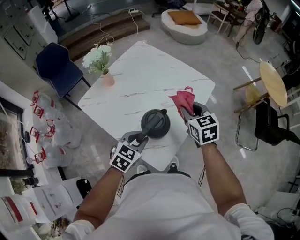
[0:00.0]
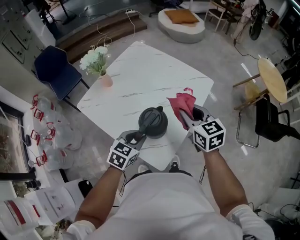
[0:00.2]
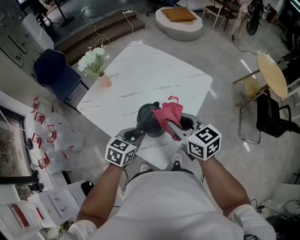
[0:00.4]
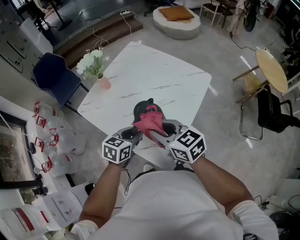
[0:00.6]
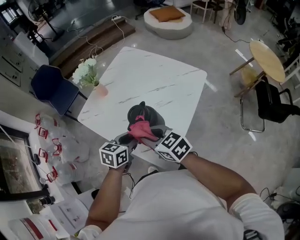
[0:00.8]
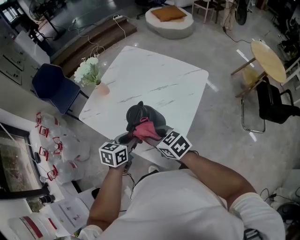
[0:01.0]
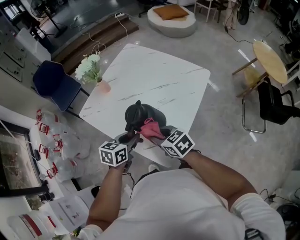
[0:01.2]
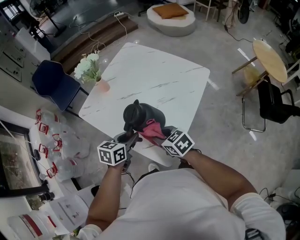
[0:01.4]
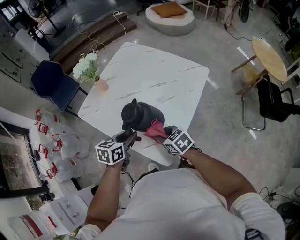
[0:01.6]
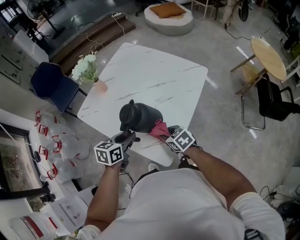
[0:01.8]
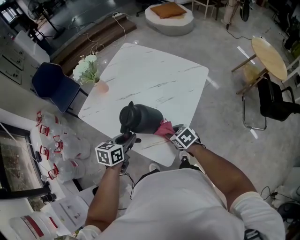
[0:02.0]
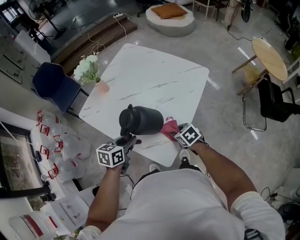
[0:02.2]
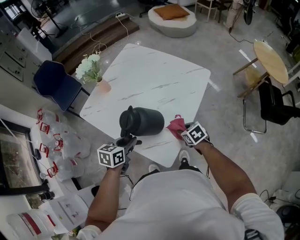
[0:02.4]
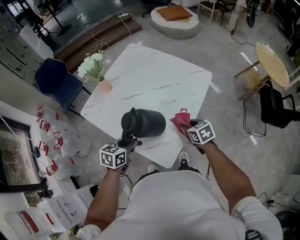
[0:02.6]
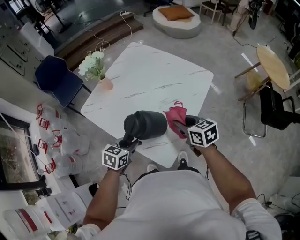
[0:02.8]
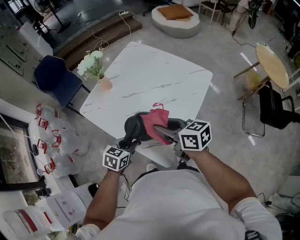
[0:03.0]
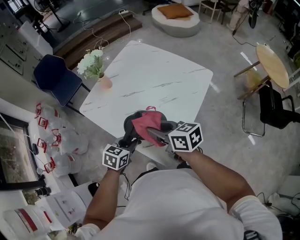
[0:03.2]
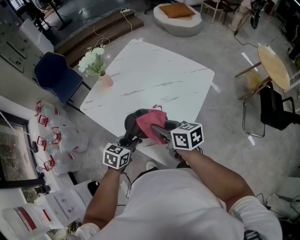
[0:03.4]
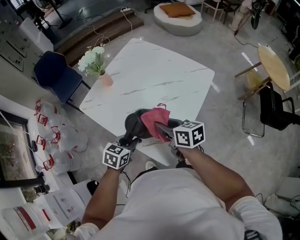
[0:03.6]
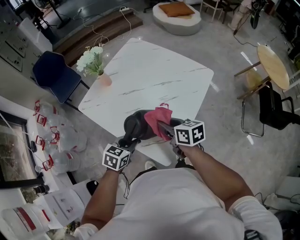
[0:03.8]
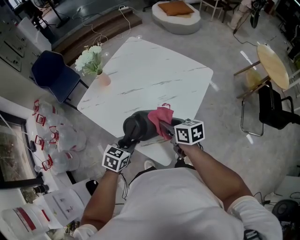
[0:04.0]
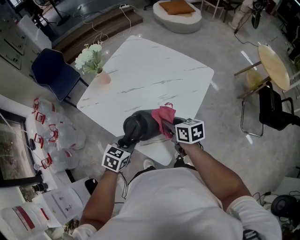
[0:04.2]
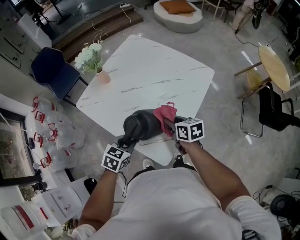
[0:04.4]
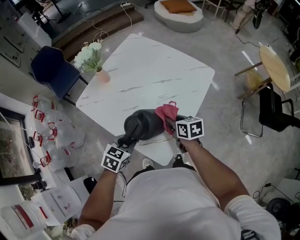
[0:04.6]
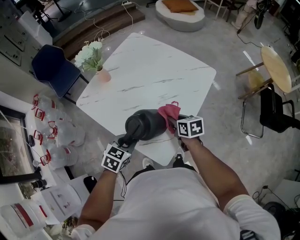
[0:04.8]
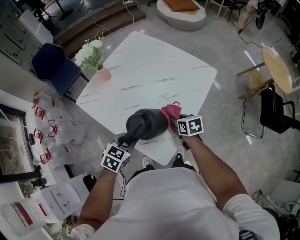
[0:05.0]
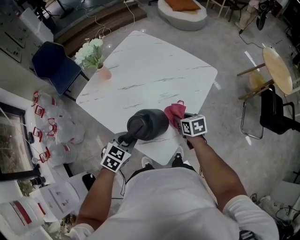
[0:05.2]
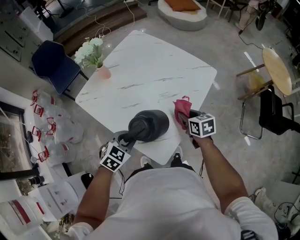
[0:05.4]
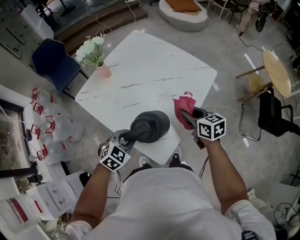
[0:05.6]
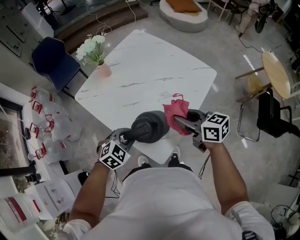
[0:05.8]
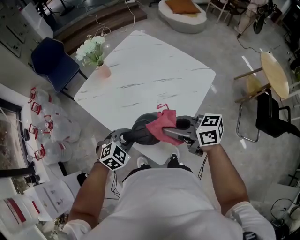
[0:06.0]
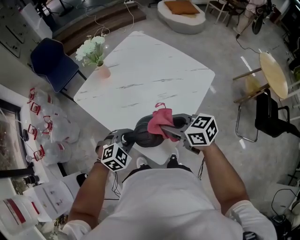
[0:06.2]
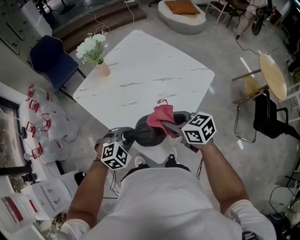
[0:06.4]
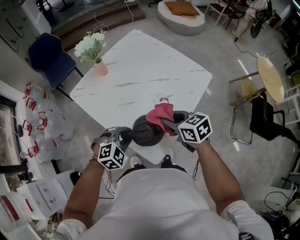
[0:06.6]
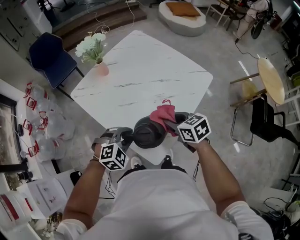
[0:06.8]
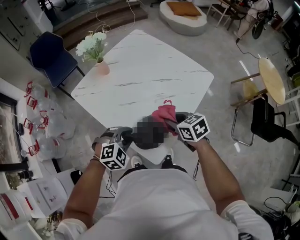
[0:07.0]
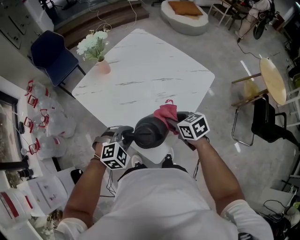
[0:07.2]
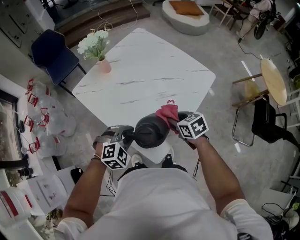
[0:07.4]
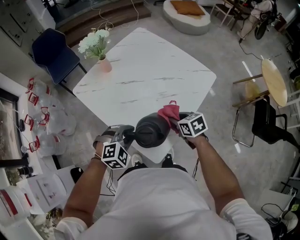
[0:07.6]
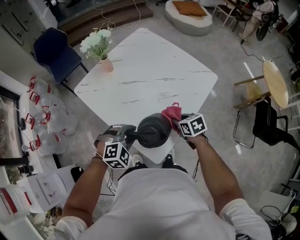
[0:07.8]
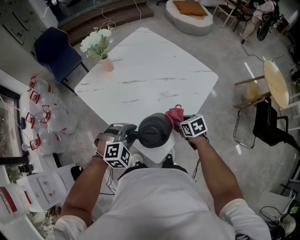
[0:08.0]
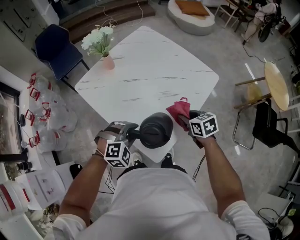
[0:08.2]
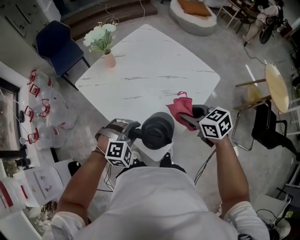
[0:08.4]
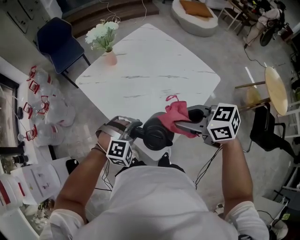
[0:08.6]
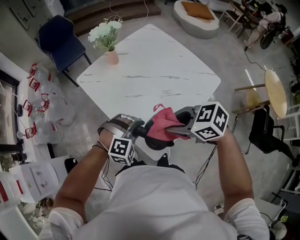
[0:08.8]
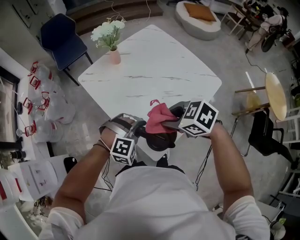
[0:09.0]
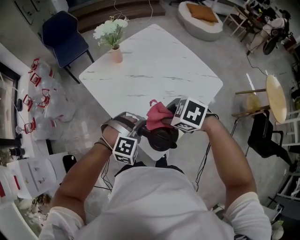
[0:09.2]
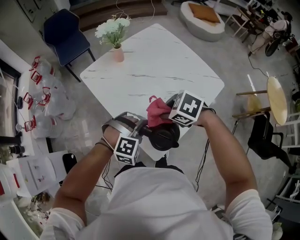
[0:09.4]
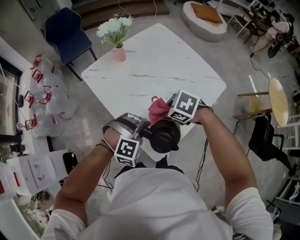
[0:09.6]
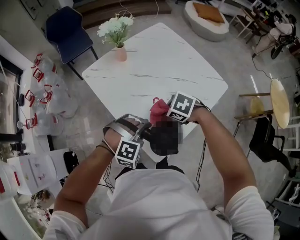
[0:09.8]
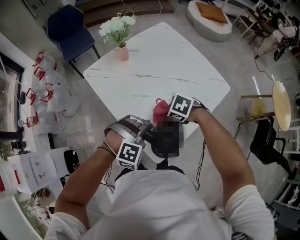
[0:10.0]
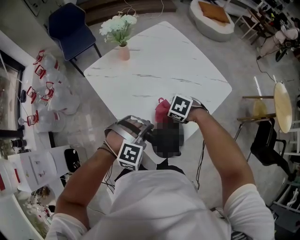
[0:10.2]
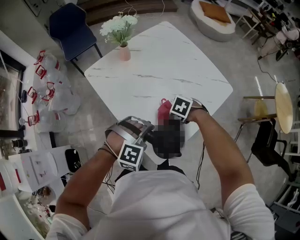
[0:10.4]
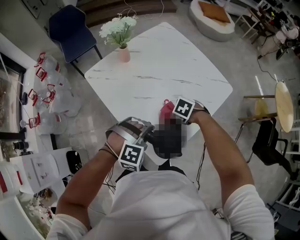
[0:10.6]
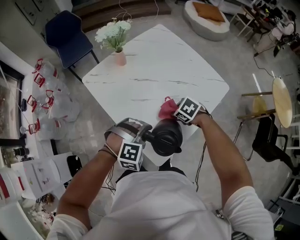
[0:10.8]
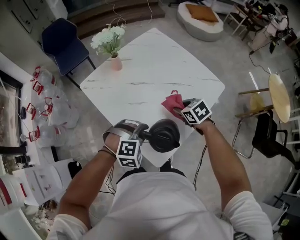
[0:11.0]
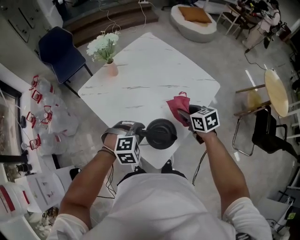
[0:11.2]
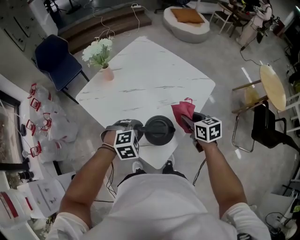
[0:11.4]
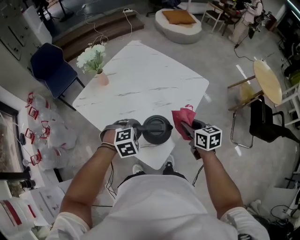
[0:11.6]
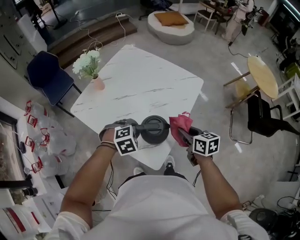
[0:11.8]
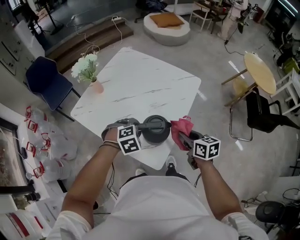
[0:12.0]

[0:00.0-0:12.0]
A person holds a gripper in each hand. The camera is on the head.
0:00.0 to 0:01.6: The right gripper is displaced downward, backward and to the left by approximately 20 cm, and changes its angle by about 30 degrees. Meanwhile the left gripper travels to the left by roughly 5 cm, and swivels about 30 degrees.
0:01.6 to 0:03.0: The left gripper ends up roughly 5 cm from where it was. The right gripper goes roughly 15 cm upward, and changes its angle by roughly 30 degrees.
0:03.0 to 0:04.4: The right gripper shifts about 15 cm downward and to the right, and changes its angle by about 20 degrees.
0:04.4 to 0:06.0: The right gripper heads upward and backward, covering roughly 15 cm, and turns by approximately 40 degrees, while the left gripper swivels some 30 degrees.
0:06.0 to 0:07.6: The right gripper moves downward and to the right, some 15 cm, and tilts its fingers some 40 degrees downward.
0:07.6 to 0:09.0: The right gripper moves up and down over some 25 cm, changing direction 2 times, and changes its angle by about 40 degrees. The left gripper turns by roughly 20 degrees.
0:09.0 to 0:10.4: The right gripper travels downward by roughly 20 cm, and turns by roughly 30 degrees.
0:10.4 to 0:12.0: The right gripper ends up approximately 20 cm from where it was, and tilts its fingers about 50 degrees upward, while the left gripper rotates approximately 20 degrees.

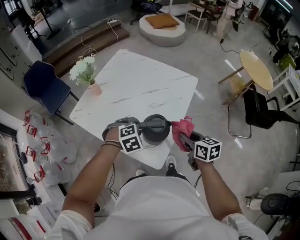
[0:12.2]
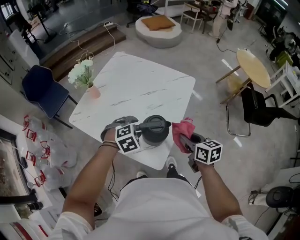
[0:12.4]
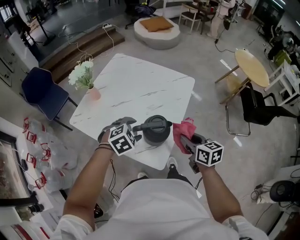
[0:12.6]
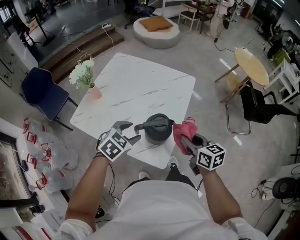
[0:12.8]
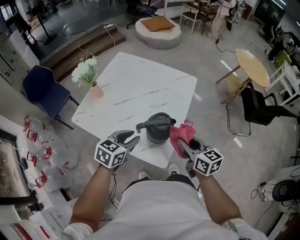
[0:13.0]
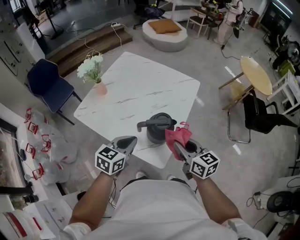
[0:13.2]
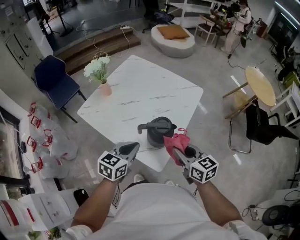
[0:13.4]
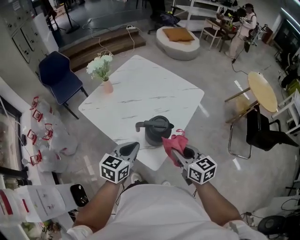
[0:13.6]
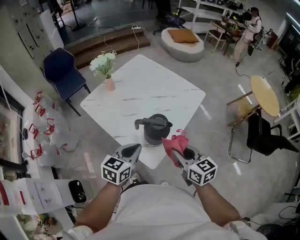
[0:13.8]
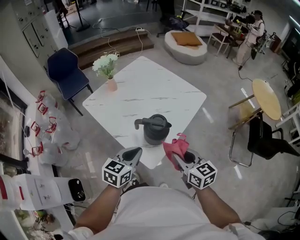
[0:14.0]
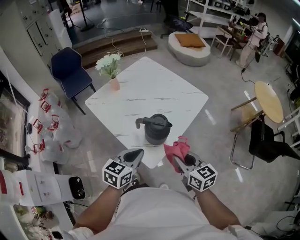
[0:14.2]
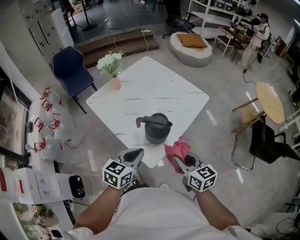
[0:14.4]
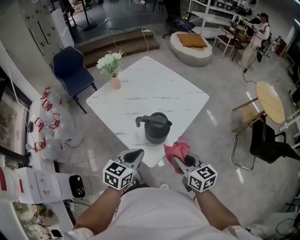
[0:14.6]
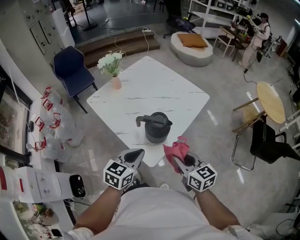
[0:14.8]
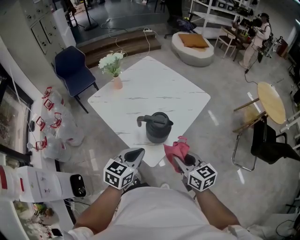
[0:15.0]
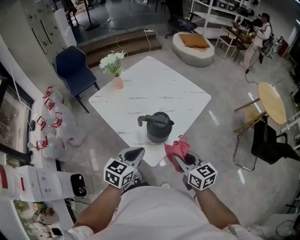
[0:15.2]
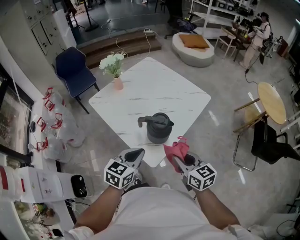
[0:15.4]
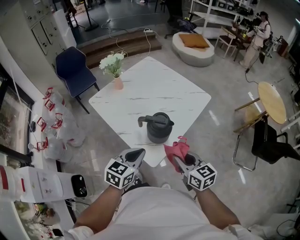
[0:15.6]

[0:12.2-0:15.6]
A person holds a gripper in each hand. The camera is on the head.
0:12.2 to 0:13.8: The right gripper goes roughly 10 cm backward and upward, and turns by about 20 degrees. Meanwhile the left gripper travels backward and upward by roughly 15 cm, angles its fingers upward, by roughly 40 degrees, and closes up.
0:13.8 to 0:15.6: There are only small adjustments of the grippers.

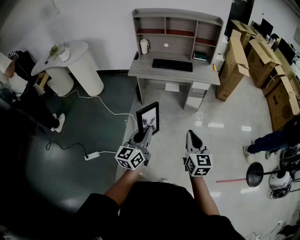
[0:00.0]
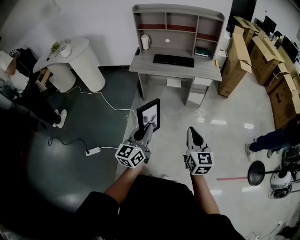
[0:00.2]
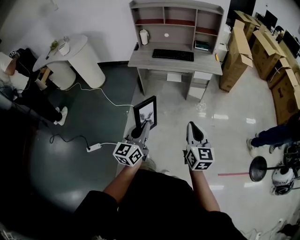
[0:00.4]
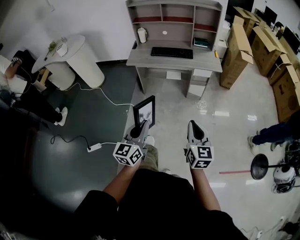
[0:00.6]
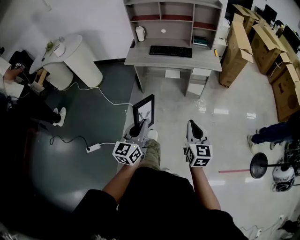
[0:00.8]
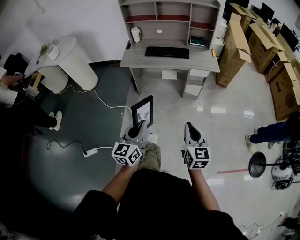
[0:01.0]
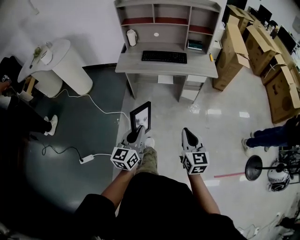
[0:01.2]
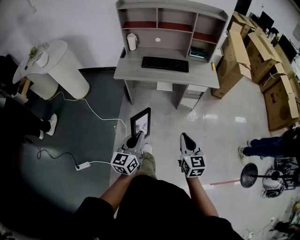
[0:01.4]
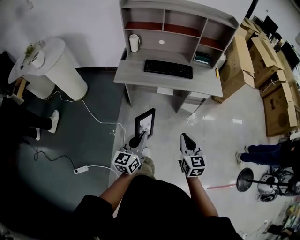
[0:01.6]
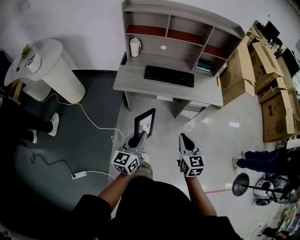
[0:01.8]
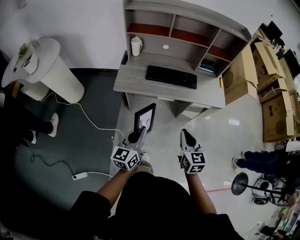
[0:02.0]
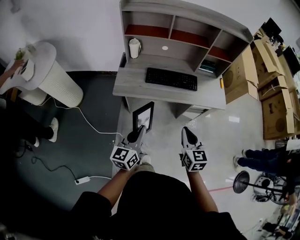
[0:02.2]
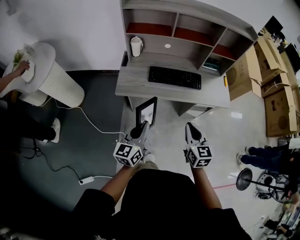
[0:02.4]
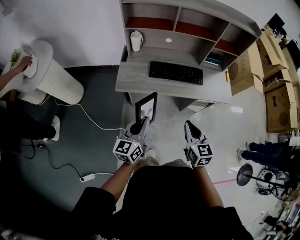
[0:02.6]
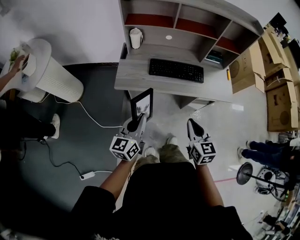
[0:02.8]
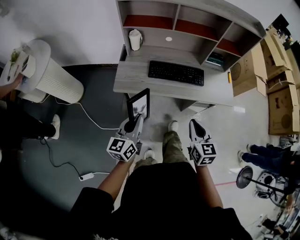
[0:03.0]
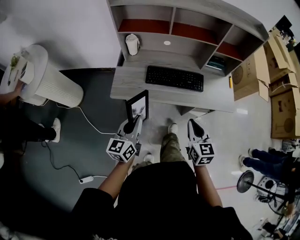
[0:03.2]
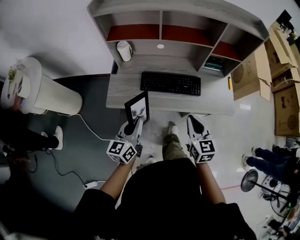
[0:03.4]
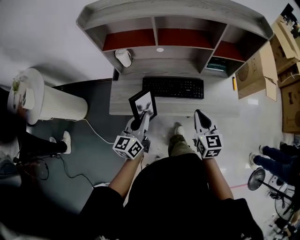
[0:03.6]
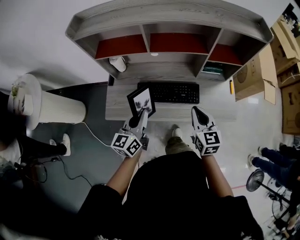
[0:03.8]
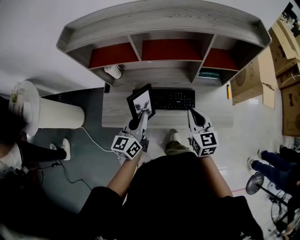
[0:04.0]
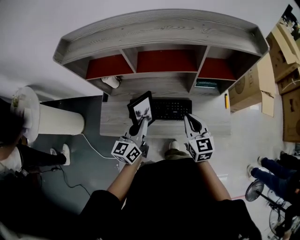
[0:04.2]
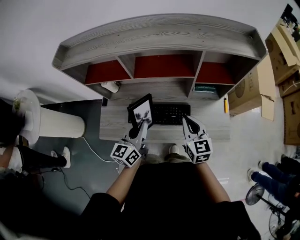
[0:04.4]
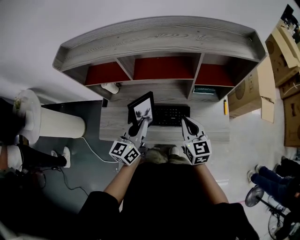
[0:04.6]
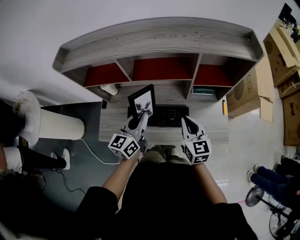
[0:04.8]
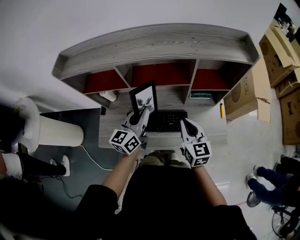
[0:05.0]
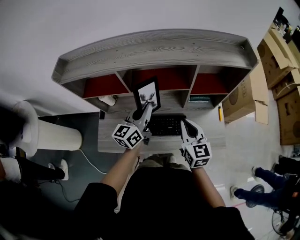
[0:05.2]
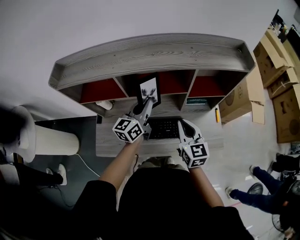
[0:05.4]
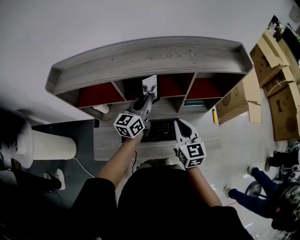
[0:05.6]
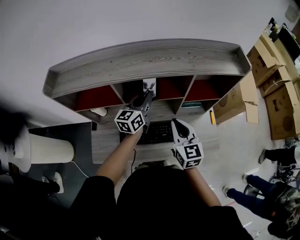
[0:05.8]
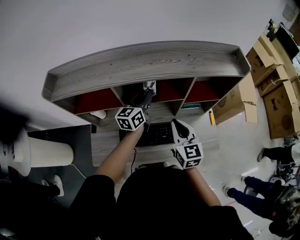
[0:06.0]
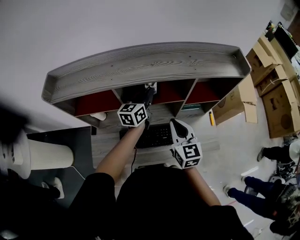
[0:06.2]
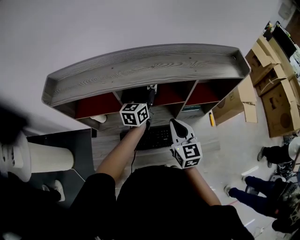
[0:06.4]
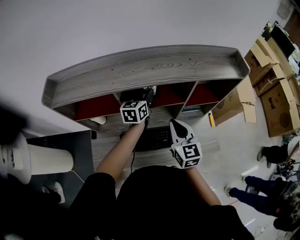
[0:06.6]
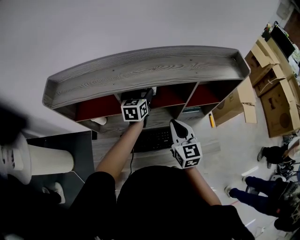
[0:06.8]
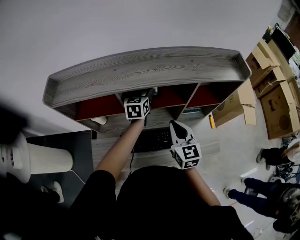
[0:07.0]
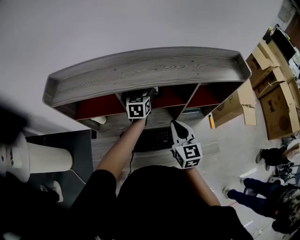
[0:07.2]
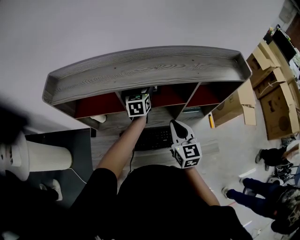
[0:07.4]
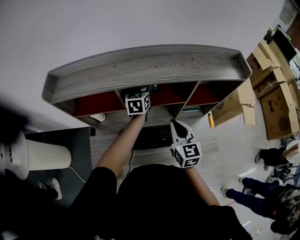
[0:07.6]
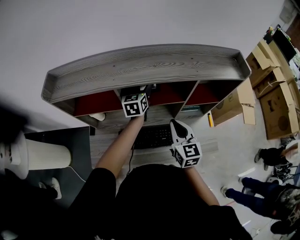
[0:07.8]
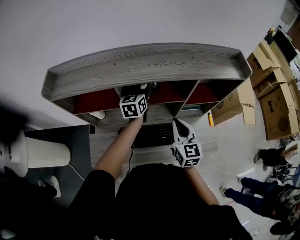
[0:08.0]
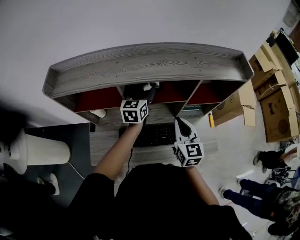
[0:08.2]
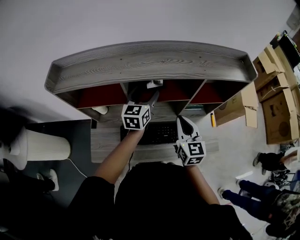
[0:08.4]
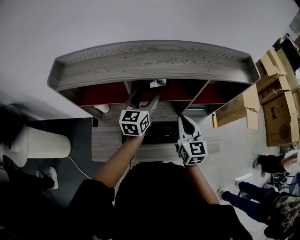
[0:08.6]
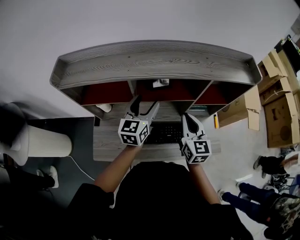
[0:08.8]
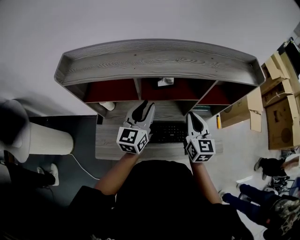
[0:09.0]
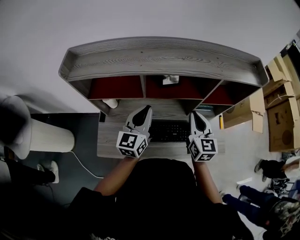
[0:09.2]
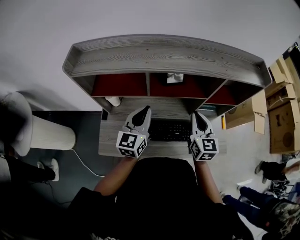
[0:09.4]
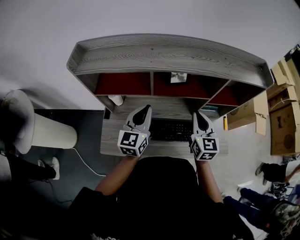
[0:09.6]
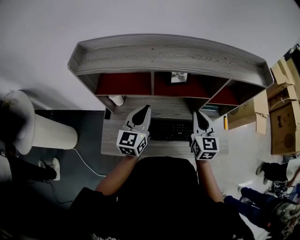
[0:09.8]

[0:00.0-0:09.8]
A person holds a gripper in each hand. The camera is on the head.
0:00.0 to 0:01.4: The left gripper heads forward and downward, covering roughly 20 cm. Meanwhile the right gripper goes about 20 cm forward.
0:01.4 to 0:02.8: The right gripper goes about 30 cm forward, while the left gripper travels forward and to the left by approximately 35 cm.
0:02.8 to 0:04.2: The grippers both shift forward and to the right by some 35 cm.
0:04.2 to 0:05.6: The right gripper shifts about 10 cm forward and upward. Meanwhile the left gripper travels forward by approximately 20 cm.
0:05.6 to 0:07.0: The left gripper travels forward by some 10 cm, changes its angle by about 20 degrees, and opens. The right gripper shifts by some 5 cm.
0:07.0 to 0:08.4: The left gripper moves backward, about 5 cm.
0:08.4 to 0:09.8: The left gripper heads backward and to the left, covering some 15 cm, and closes its fingers.
